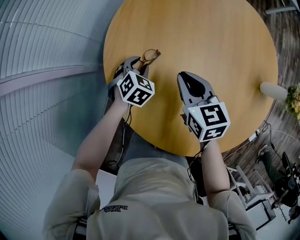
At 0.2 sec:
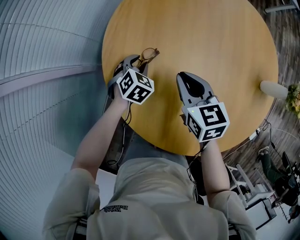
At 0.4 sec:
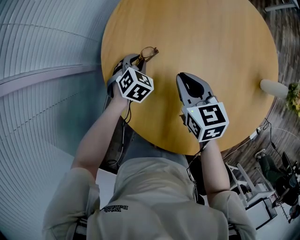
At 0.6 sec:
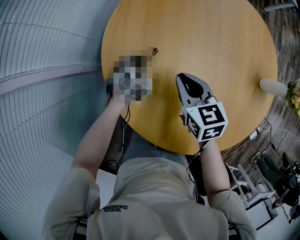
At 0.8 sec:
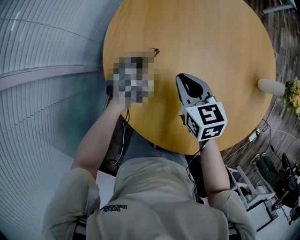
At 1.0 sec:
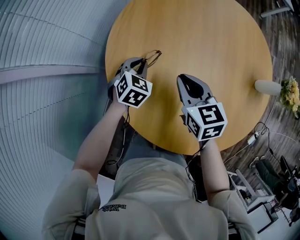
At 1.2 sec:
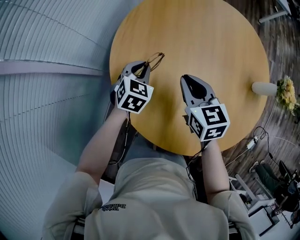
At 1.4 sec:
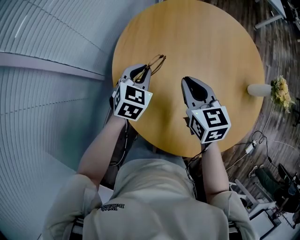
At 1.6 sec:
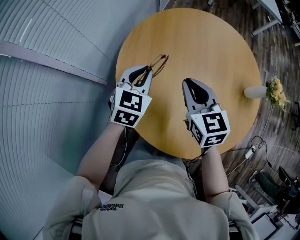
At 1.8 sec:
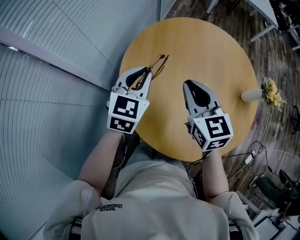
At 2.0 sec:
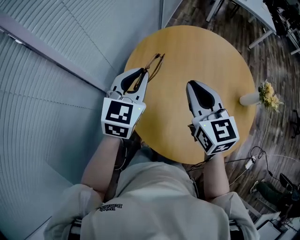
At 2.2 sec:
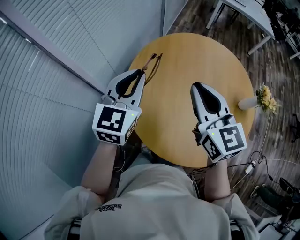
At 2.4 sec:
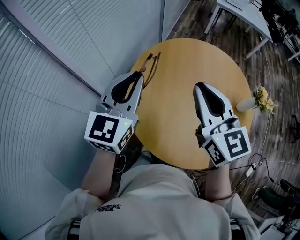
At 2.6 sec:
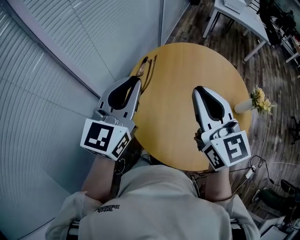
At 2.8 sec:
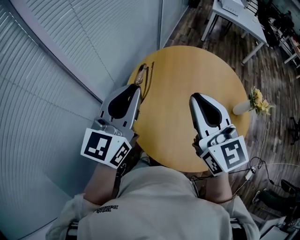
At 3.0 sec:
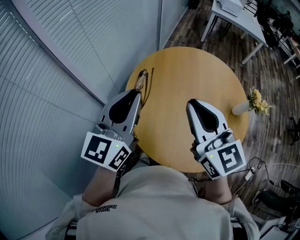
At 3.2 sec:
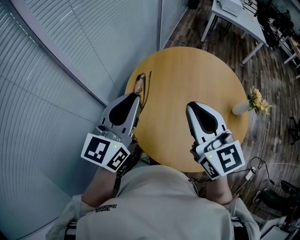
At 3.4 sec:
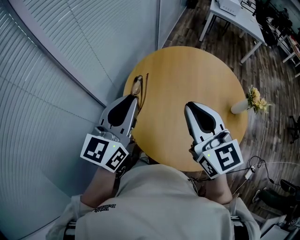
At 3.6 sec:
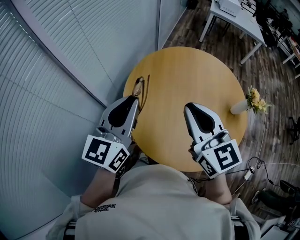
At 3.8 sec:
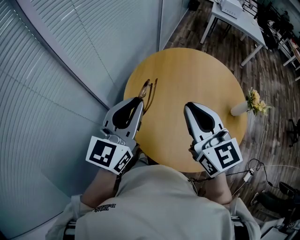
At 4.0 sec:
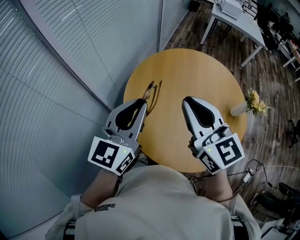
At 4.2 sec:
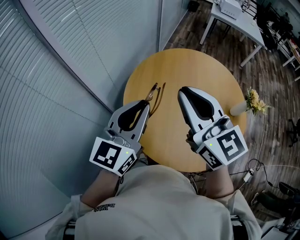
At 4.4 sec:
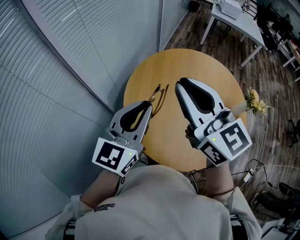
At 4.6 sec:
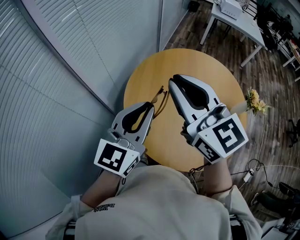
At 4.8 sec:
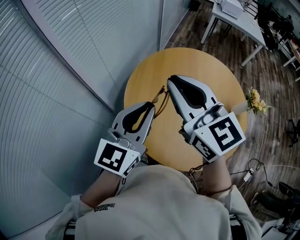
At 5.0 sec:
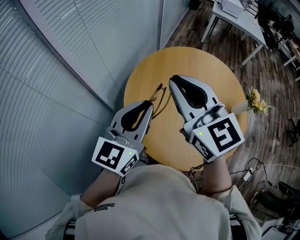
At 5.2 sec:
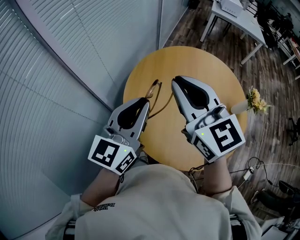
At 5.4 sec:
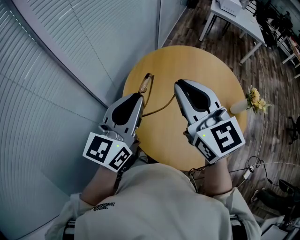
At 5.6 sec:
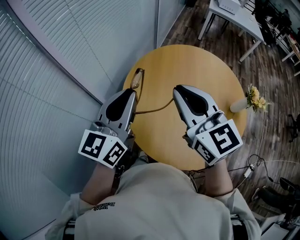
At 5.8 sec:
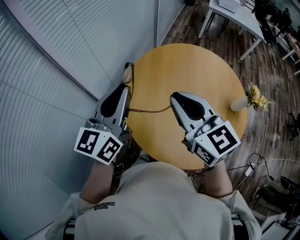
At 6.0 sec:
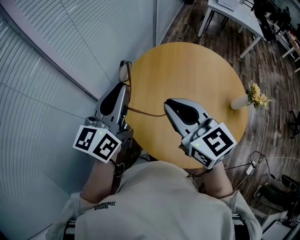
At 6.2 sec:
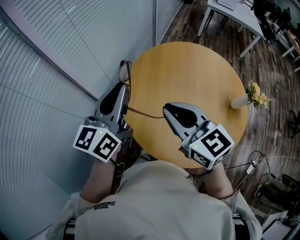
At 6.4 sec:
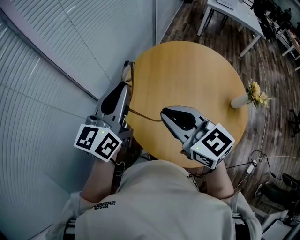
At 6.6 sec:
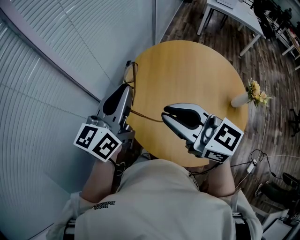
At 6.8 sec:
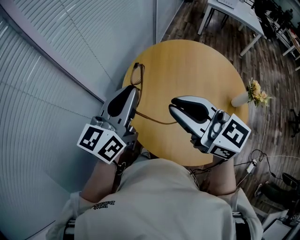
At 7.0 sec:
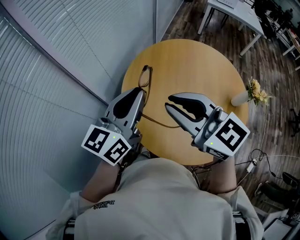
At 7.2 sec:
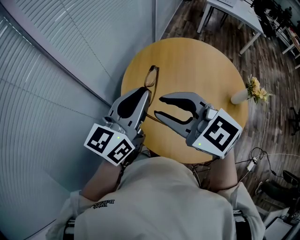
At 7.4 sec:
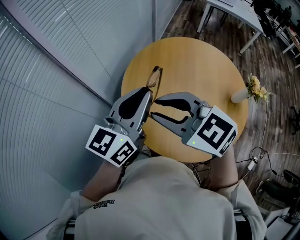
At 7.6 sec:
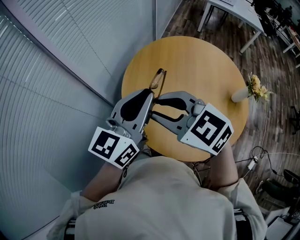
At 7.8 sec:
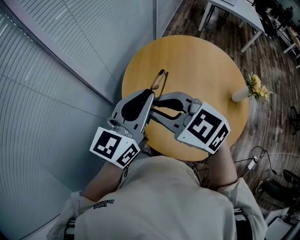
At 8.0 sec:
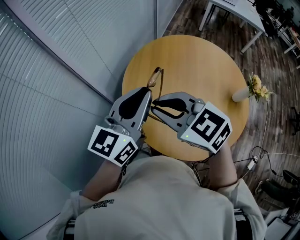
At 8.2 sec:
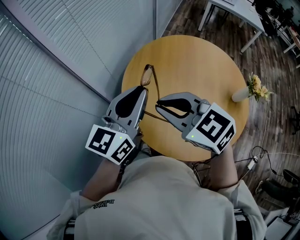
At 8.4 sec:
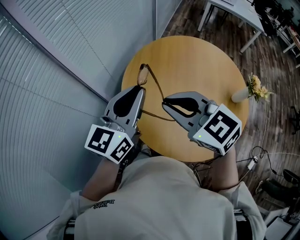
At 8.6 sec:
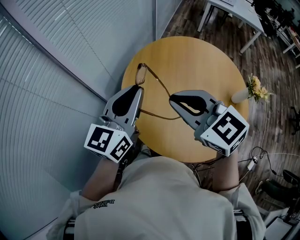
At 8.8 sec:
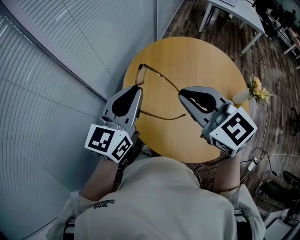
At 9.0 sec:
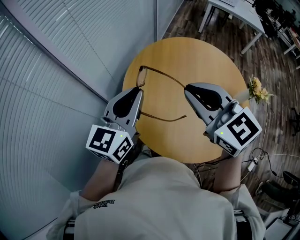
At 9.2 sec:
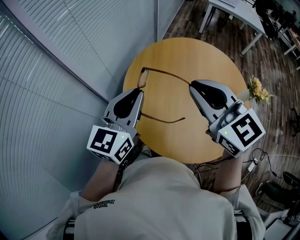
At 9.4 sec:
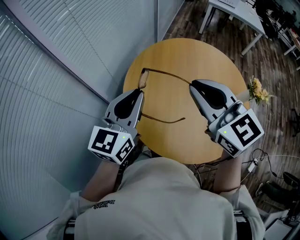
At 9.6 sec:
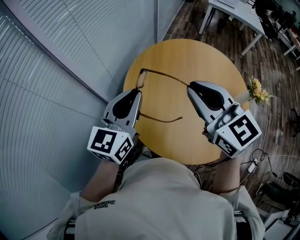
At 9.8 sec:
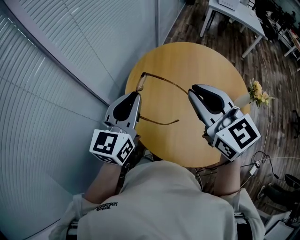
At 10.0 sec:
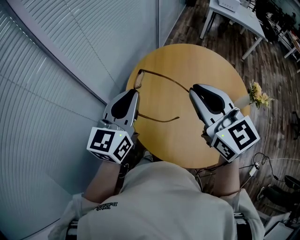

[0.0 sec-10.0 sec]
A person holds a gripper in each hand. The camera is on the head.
0.0 sec to 1.4 sec: The right gripper heads upward, covering approximately 5 cm. Meanwhile the left gripper is displaced upward by some 15 cm, changes its angle by about 20 degrees, and closes up.
1.4 sec to 2.8 sec: Both grippers move upward, approximately 30 cm. The left gripper tilts its fingers approximately 40 degrees upward. The right gripper swivels roughly 30 degrees.
2.8 sec to 4.2 sec: The left gripper ends up some 5 cm from where it was.
4.2 sec to 5.8 sec: The left gripper moves forward, some 5 cm, while the right gripper moves downward, approximately 5 cm.
5.8 sec to 7.2 sec: The left gripper goes approximately 5 cm to the right, while the right gripper moves to the left, about 5 cm, and swivels approximately 30 degrees.
7.2 sec to 8.6 sec: The grippers stay close to where they were, moving slightly.
8.6 sec to 10.0 sec: The right gripper moves to the right, roughly 5 cm, and changes its angle by about 20 degrees.

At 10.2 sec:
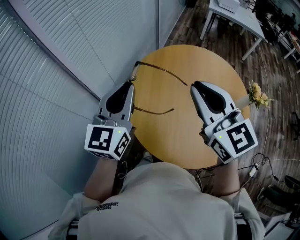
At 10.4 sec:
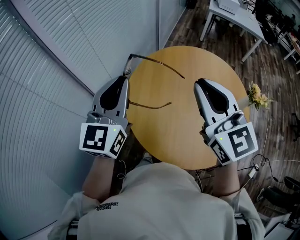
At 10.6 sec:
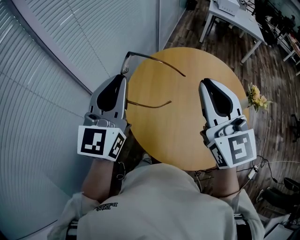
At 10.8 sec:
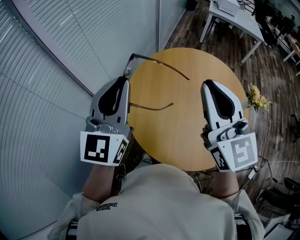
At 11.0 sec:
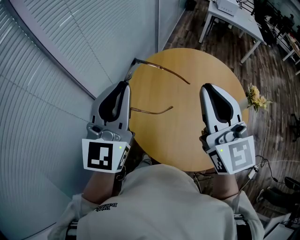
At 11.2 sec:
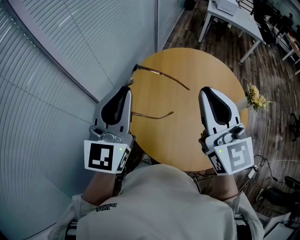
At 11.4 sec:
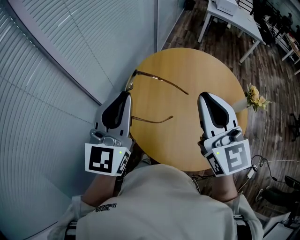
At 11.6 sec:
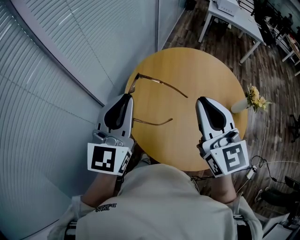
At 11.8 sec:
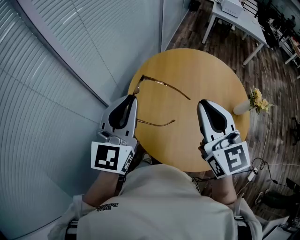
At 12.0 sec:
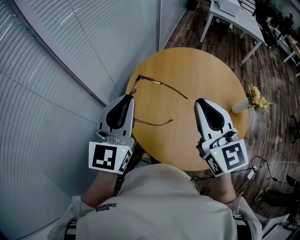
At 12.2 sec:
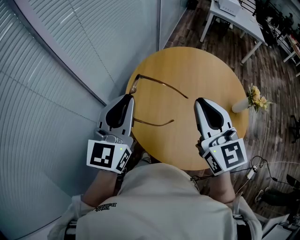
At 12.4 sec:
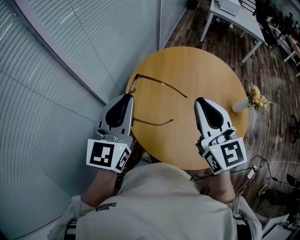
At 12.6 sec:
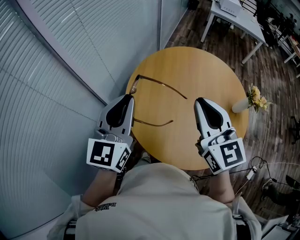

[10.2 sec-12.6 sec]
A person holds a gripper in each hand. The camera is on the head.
11.4 sec to 12.6 sec: There are only small adjustments of the grippers.

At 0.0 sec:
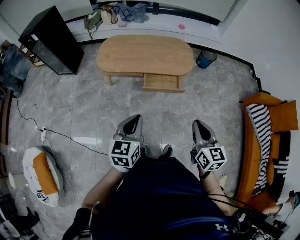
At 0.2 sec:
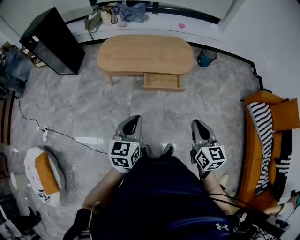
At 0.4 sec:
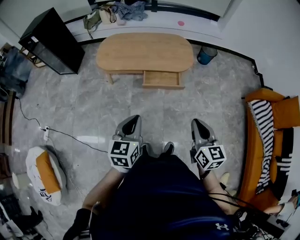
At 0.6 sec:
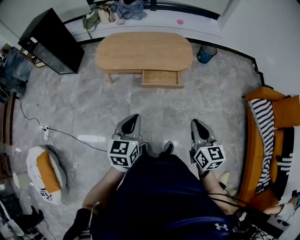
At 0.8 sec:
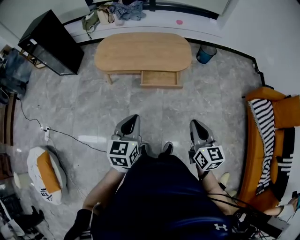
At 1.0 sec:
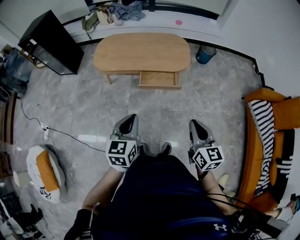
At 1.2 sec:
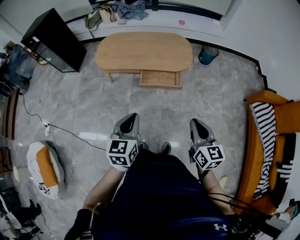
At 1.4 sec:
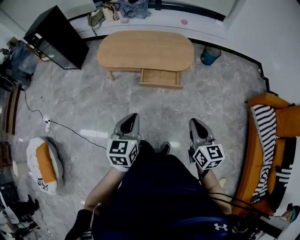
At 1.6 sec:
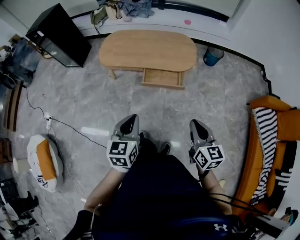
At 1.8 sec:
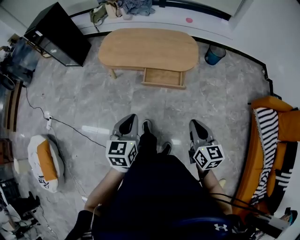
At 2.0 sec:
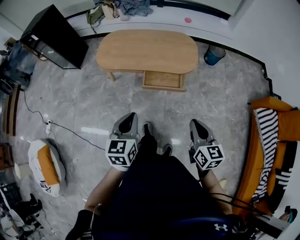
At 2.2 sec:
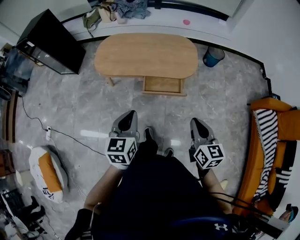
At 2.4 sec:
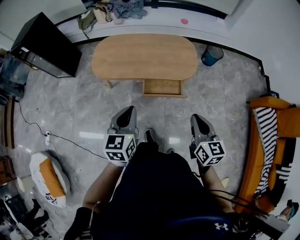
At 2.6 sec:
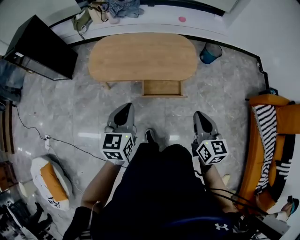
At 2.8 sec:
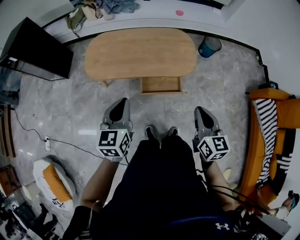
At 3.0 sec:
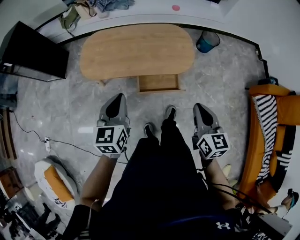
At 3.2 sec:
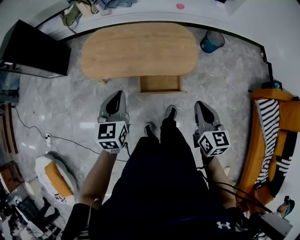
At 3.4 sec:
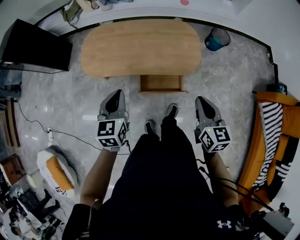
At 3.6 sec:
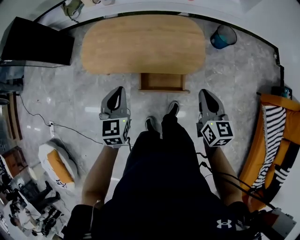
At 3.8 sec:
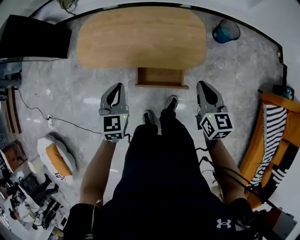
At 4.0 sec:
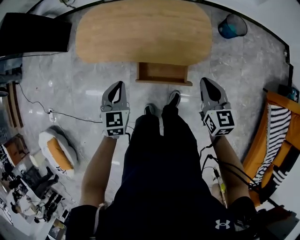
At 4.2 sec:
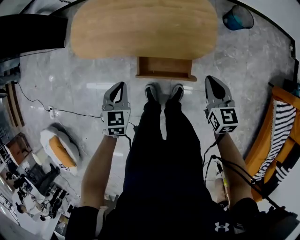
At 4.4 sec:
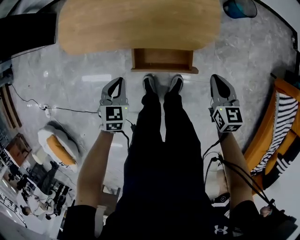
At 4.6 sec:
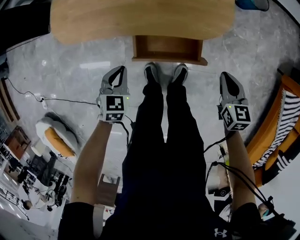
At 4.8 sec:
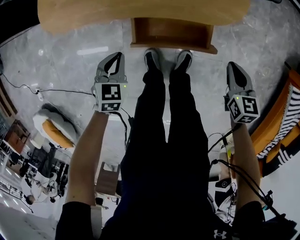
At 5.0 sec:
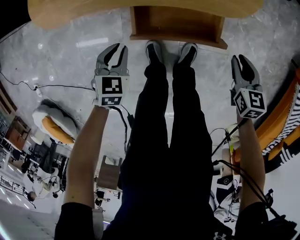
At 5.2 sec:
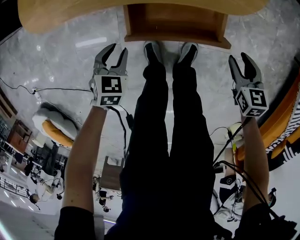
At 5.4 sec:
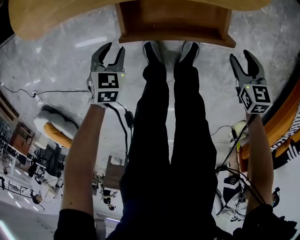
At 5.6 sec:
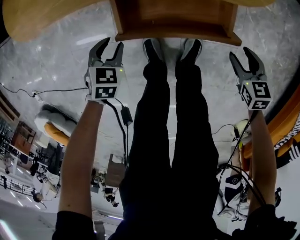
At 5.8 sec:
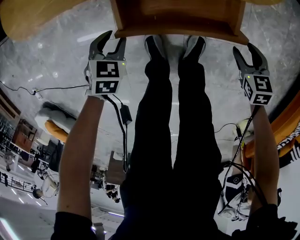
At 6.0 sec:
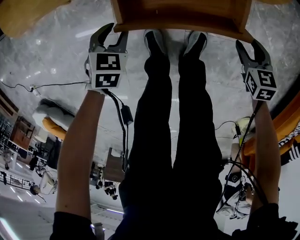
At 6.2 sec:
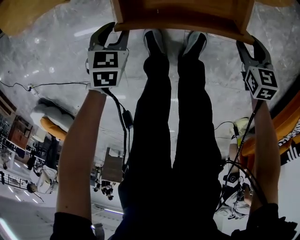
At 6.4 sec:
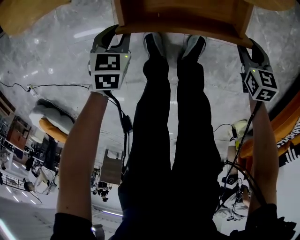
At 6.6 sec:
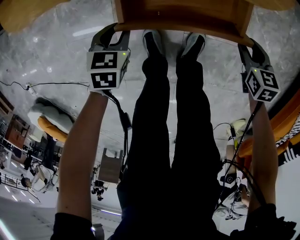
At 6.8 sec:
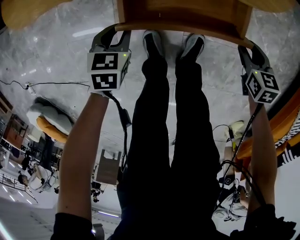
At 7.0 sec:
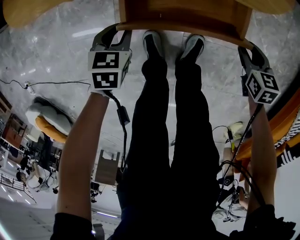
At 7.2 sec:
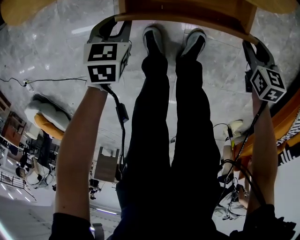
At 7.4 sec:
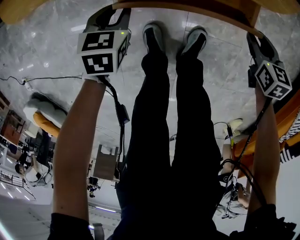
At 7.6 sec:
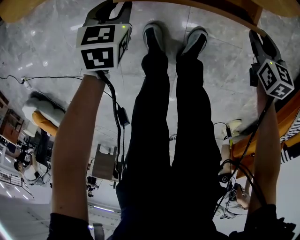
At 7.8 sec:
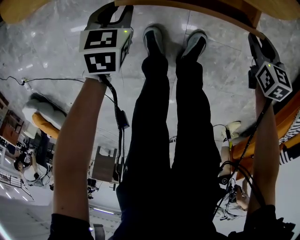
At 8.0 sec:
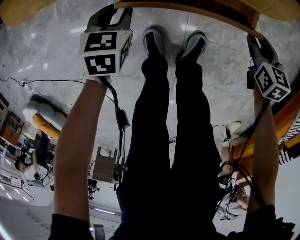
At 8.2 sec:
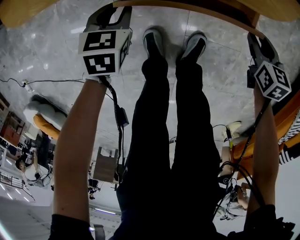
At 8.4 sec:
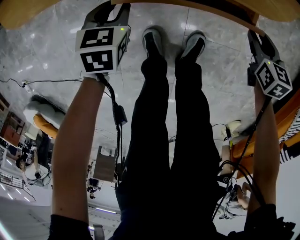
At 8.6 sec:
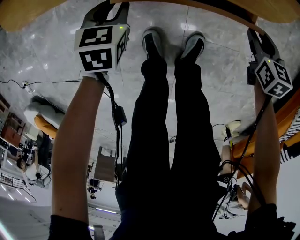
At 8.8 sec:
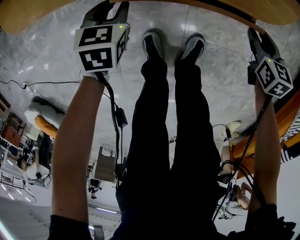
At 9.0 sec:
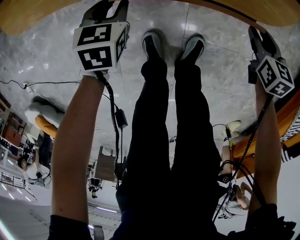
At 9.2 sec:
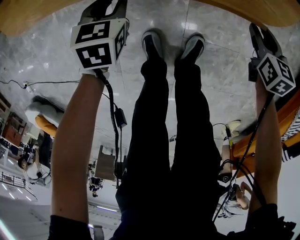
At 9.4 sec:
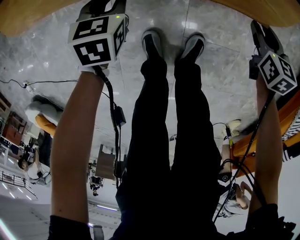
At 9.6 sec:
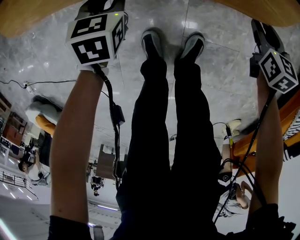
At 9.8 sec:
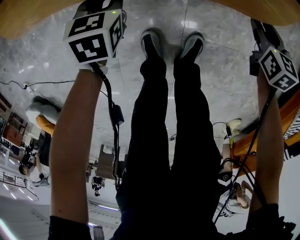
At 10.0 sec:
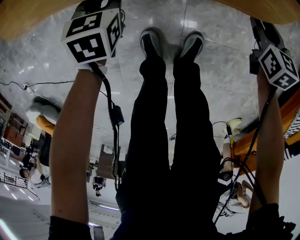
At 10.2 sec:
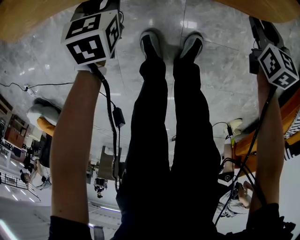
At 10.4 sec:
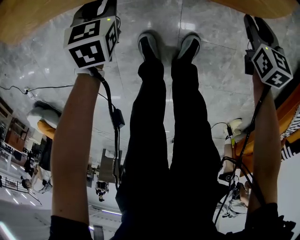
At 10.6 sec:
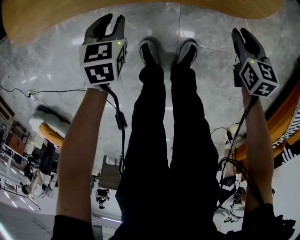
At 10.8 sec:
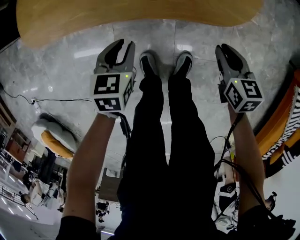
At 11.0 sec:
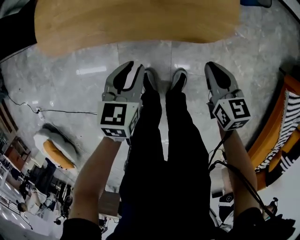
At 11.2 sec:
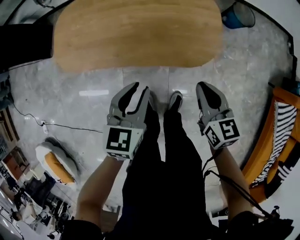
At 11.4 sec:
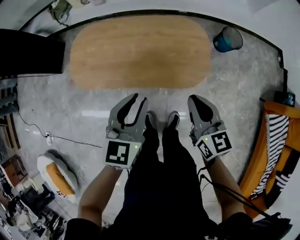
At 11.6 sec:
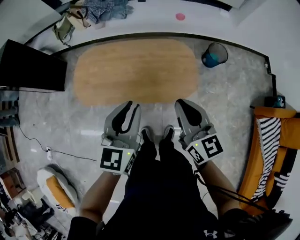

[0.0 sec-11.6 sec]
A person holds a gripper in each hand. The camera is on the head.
0.0 sec to 1.4 sec: The grippers both shift to the right by some 10 cm.
1.4 sec to 2.8 sec: The two grippers go approximately 25 cm forward.
2.8 sec to 4.4 sec: The left gripper is displaced downward by roughly 30 cm, and swivels approximately 30 degrees. Meanwhile the right gripper is displaced downward, forward and to the right by some 35 cm, and swivels roughly 20 degrees.
4.4 sec to 5.8 sec: Both grippers move downward, some 35 cm. The right gripper turns by about 30 degrees, and opens its fingers, while the left gripper opens.
5.8 sec to 7.2 sec: The grippers make only small movements.
7.2 sec to 8.8 sec: Both grippers travel together forward, approximately 10 cm.
8.8 sec to 10.2 sec: There are only small adjustments of the grippers.
10.2 sec to 11.6 sec: Both grippers travel together upward, some 60 cm. The right gripper tips its fingers upward by approximately 40 degrees, and closes up; the left gripper tips its fingers upward by approximately 40 degrees.
